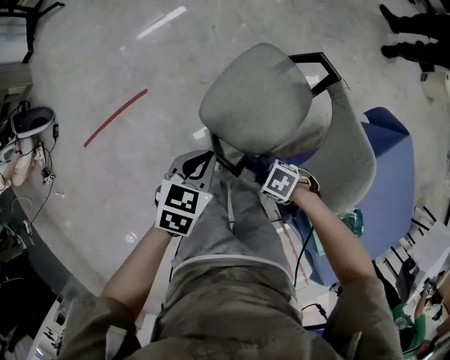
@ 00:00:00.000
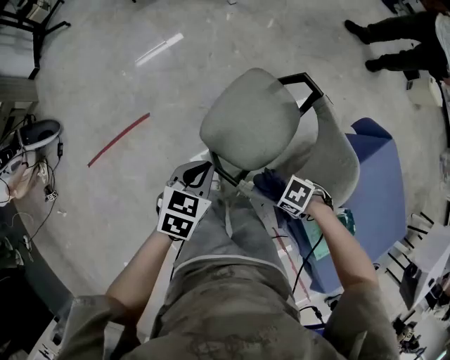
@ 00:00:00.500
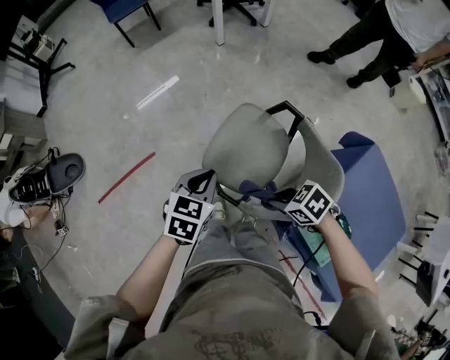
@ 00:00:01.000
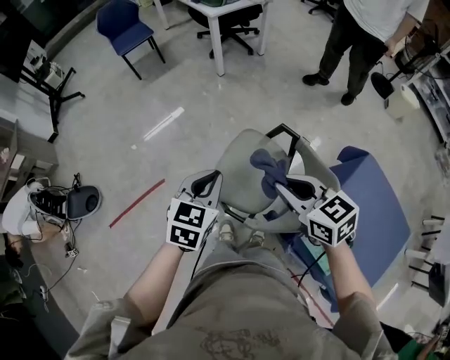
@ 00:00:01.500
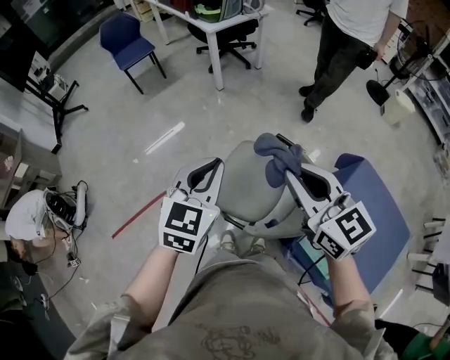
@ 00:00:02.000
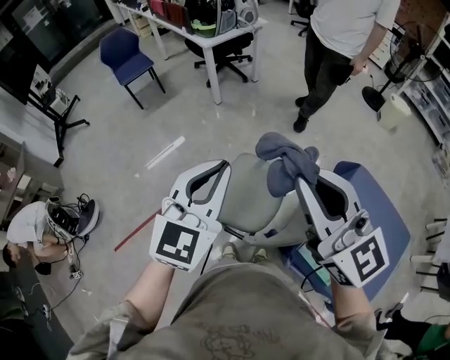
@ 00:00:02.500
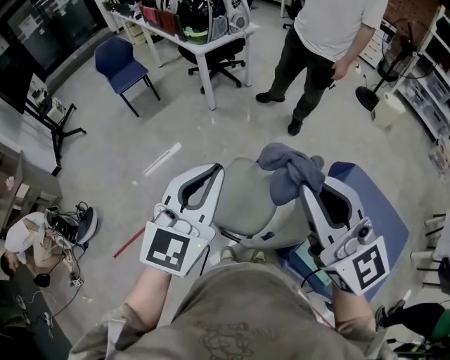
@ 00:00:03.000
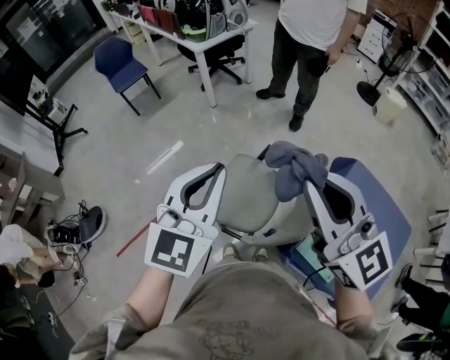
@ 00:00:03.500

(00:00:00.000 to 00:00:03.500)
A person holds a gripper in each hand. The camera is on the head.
00:00:00.000 - 00:00:02.000: The left gripper heads upward, covering some 30 cm, and tilts its fingers about 30 degrees upward; the right gripper travels upward by approximately 50 cm, and tips its fingers upward by about 50 degrees.
00:00:02.000 - 00:00:03.500: The left gripper is displaced upward by roughly 10 cm, while the right gripper goes approximately 10 cm upward and to the right.

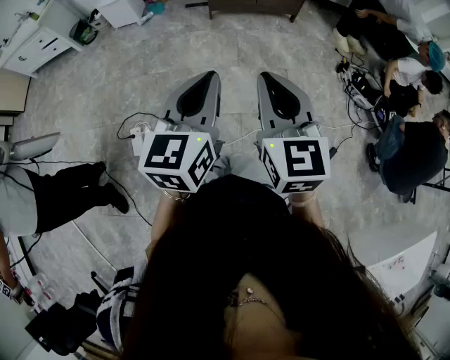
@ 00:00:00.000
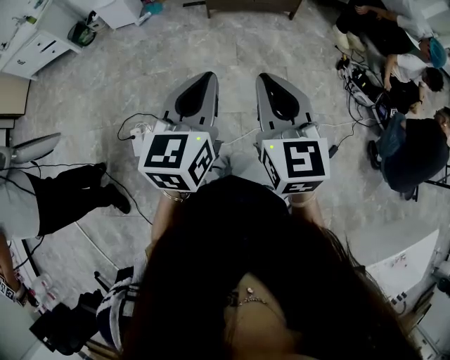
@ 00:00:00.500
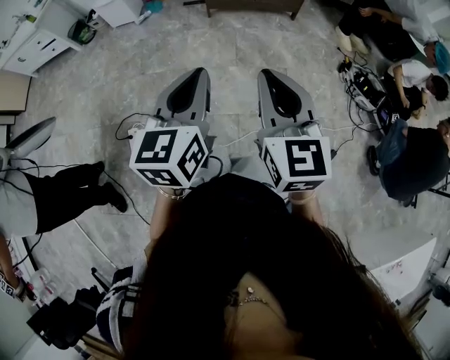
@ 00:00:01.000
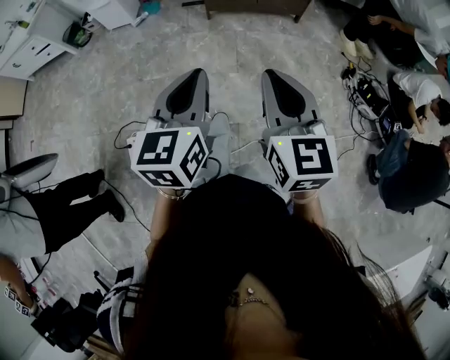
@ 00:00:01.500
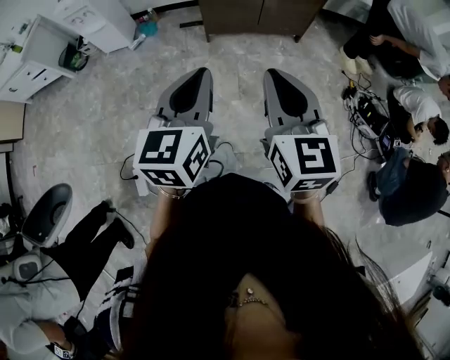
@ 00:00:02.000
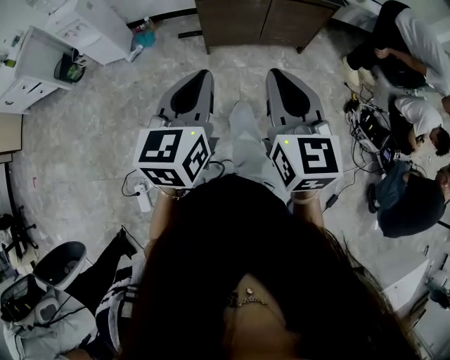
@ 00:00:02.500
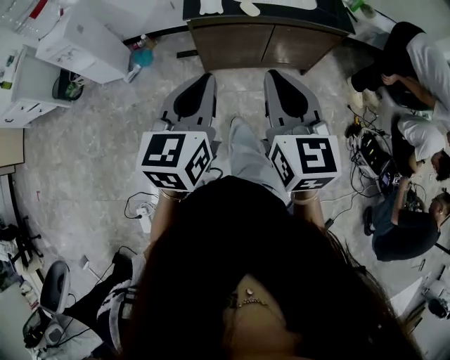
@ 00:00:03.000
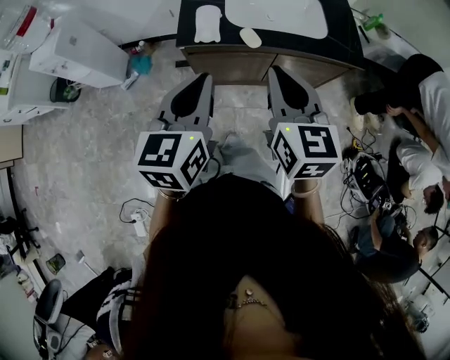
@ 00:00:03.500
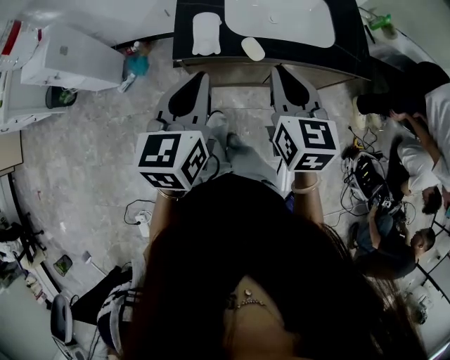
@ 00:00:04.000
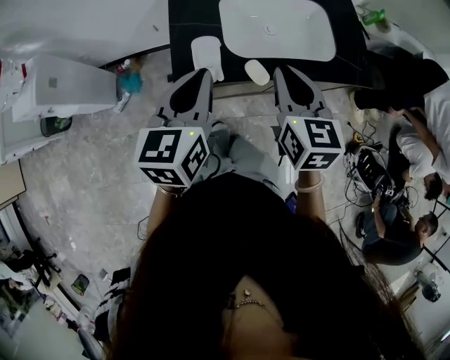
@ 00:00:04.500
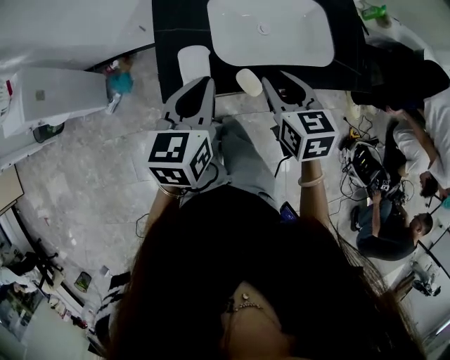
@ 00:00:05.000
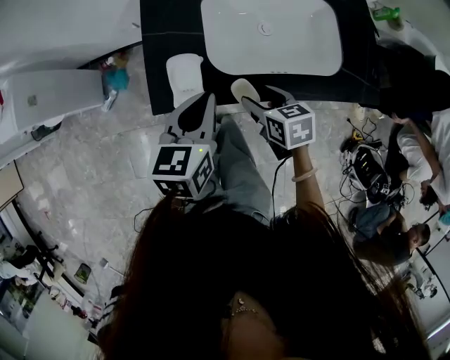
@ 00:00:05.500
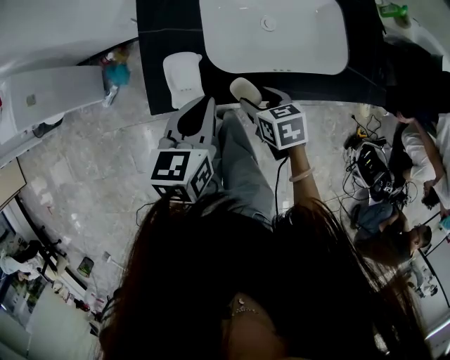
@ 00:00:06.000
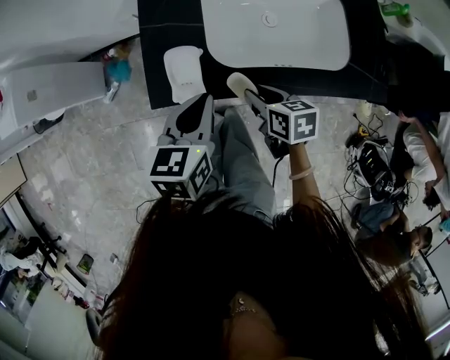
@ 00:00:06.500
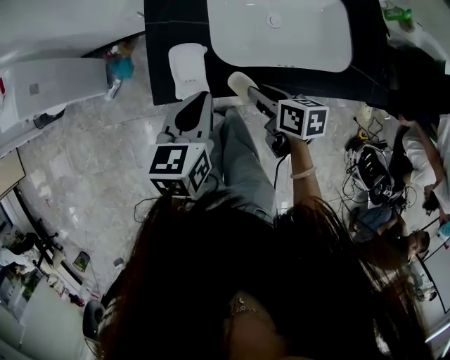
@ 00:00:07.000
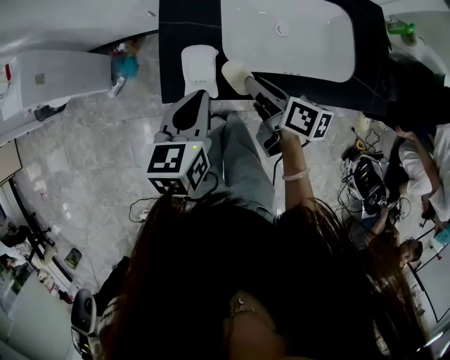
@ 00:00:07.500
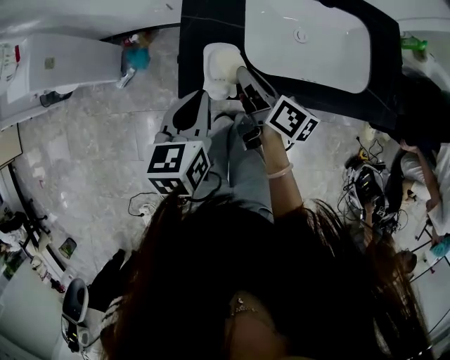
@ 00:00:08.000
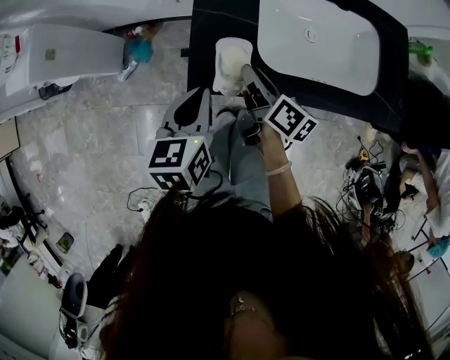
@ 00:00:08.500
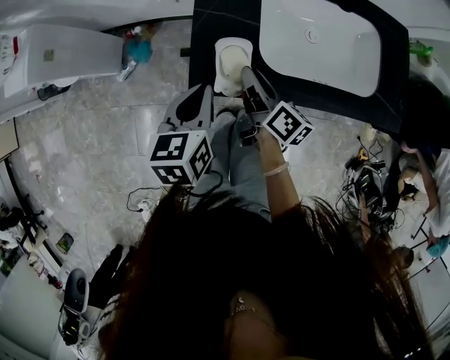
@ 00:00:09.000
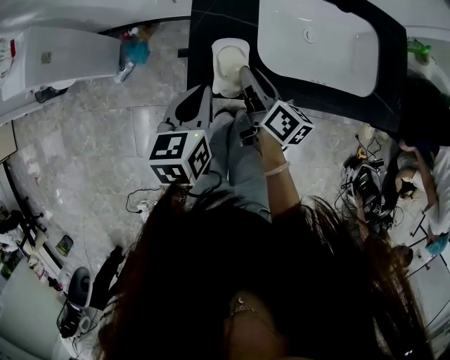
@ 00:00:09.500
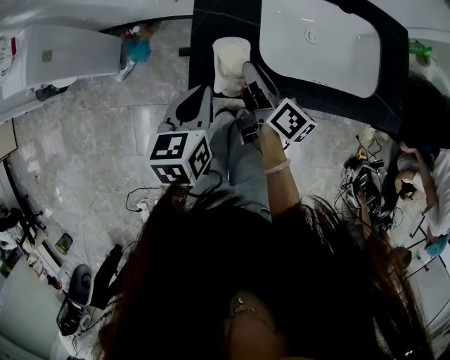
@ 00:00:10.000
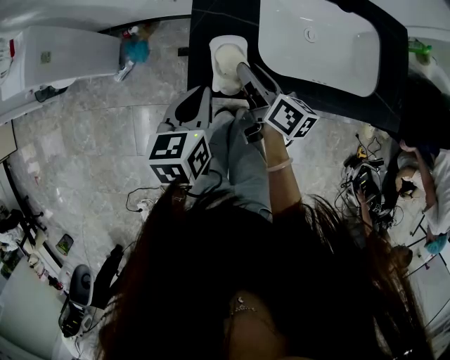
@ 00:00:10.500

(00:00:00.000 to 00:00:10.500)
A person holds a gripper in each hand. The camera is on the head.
00:00:00.000 - 00:00:02.000: The two grippers go roughly 30 cm forward.
00:00:02.000 - 00:00:04.000: The pair of grippers is taken forward, about 60 cm.
00:00:04.000 - 00:00:06.500: The left gripper moves forward and downward, about 20 cm, and rotates some 20 degrees; the right gripper heads downward and forward, covering approximately 30 cm, turns by some 40 degrees, and opens.
00:00:06.500 - 00:00:08.500: The left gripper travels to the left by about 10 cm. Meanwhile the right gripper shifts about 15 cm to the left and forward, and swivels roughly 40 degrees.
00:00:08.500 - 00:00:10.500: The grippers make only small movements.

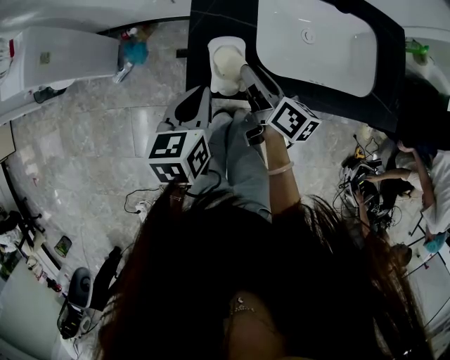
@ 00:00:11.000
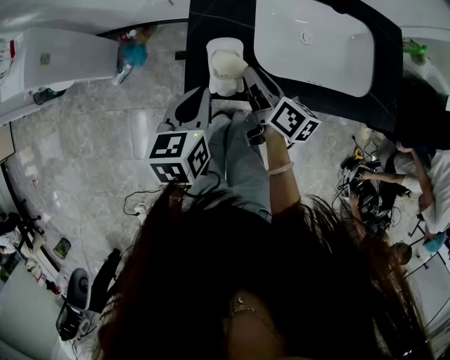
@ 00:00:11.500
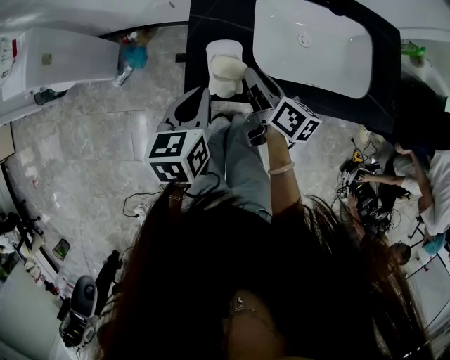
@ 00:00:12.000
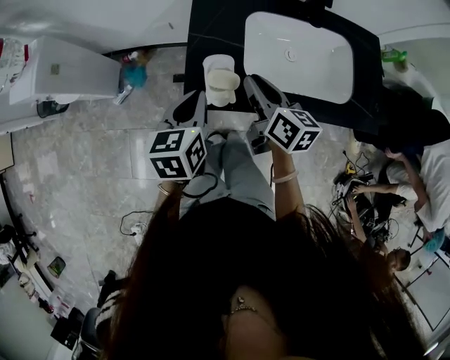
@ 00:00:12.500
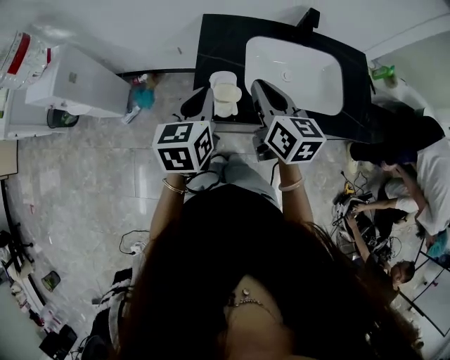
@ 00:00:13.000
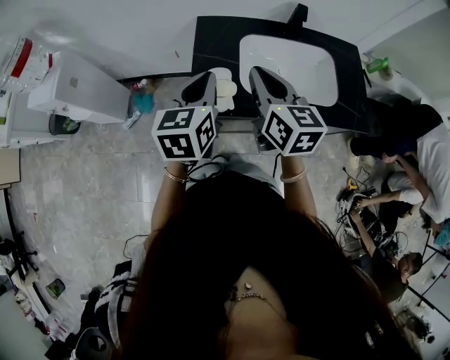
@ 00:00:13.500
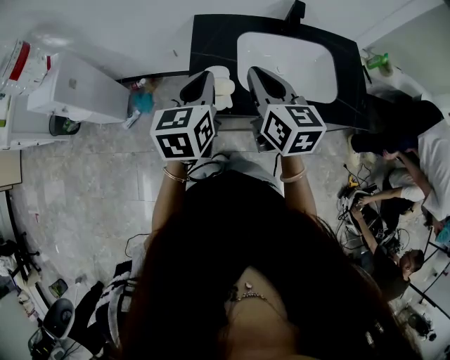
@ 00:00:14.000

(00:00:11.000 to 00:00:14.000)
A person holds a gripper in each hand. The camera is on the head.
00:00:11.000 - 00:00:12.500: The right gripper moves upward, about 10 cm, and closes its fingers.
00:00:12.500 - 00:00:14.000: The two grippers go approximately 10 cm upward. The right gripper rotates approximately 20 degrees.

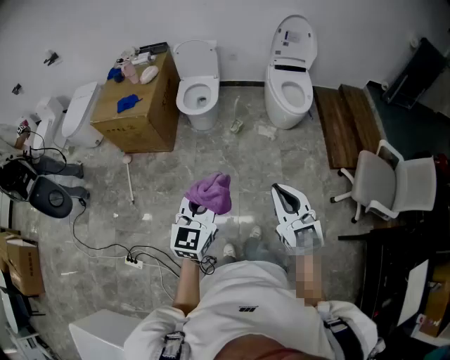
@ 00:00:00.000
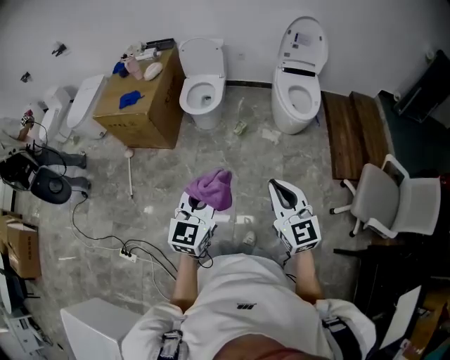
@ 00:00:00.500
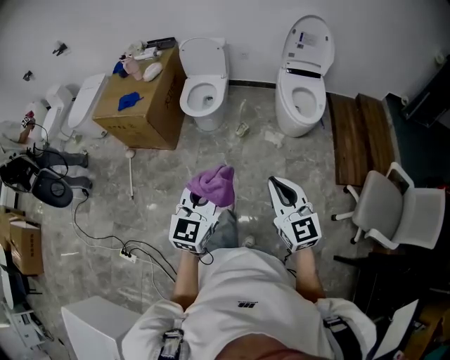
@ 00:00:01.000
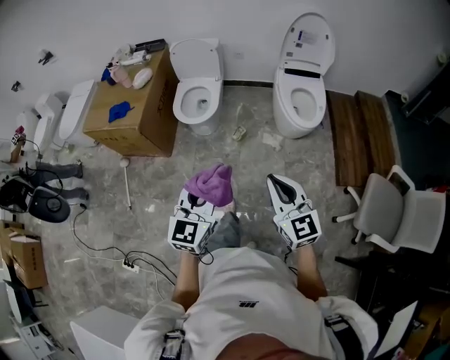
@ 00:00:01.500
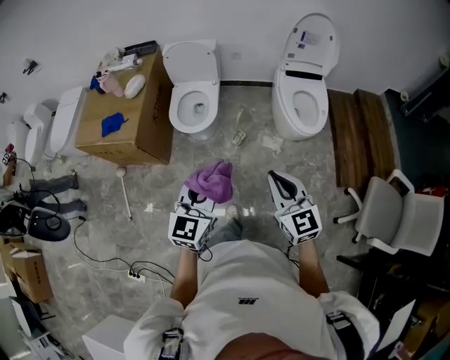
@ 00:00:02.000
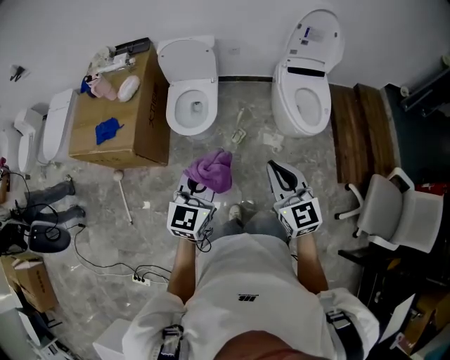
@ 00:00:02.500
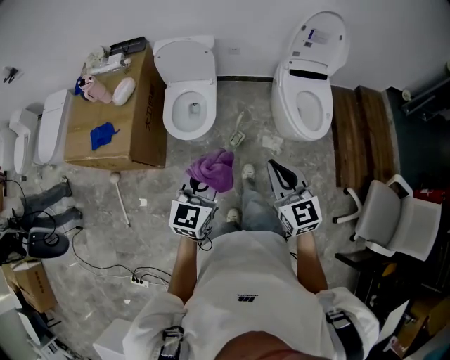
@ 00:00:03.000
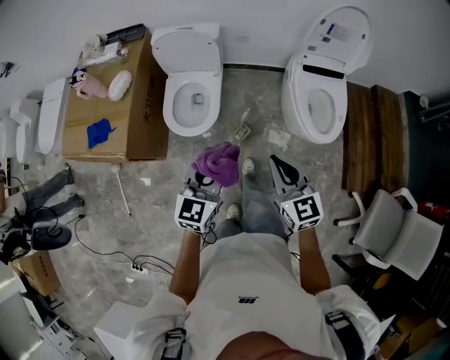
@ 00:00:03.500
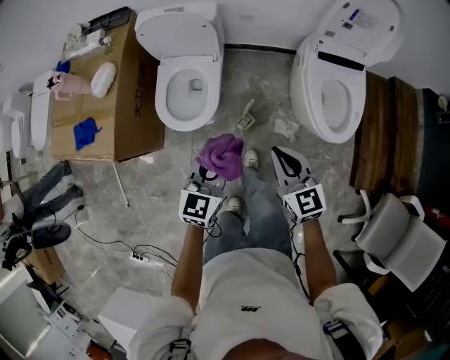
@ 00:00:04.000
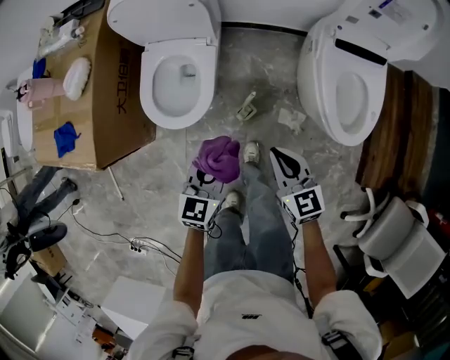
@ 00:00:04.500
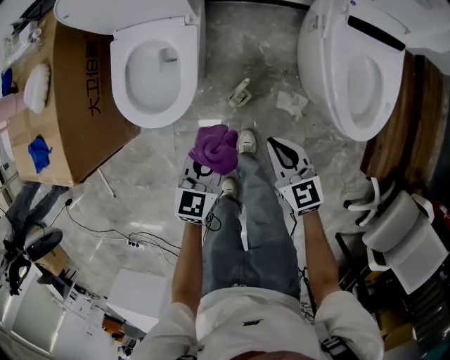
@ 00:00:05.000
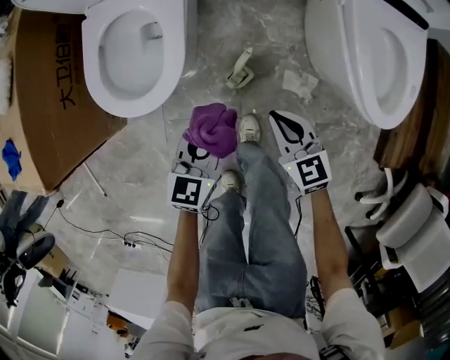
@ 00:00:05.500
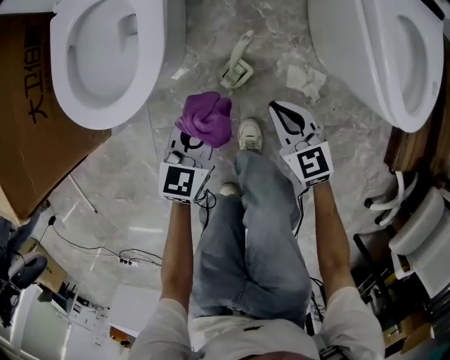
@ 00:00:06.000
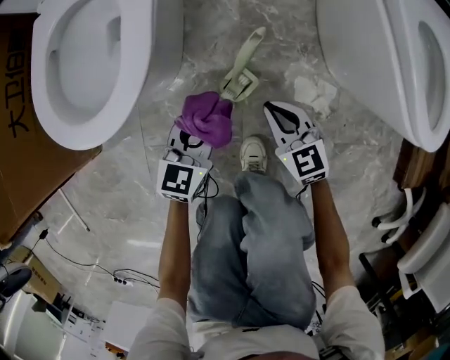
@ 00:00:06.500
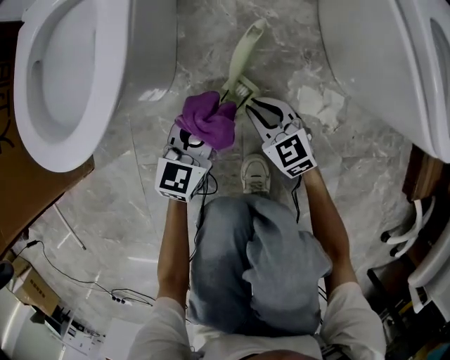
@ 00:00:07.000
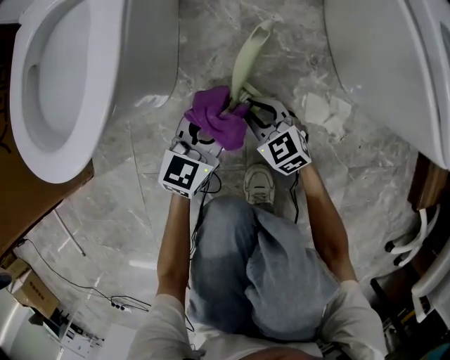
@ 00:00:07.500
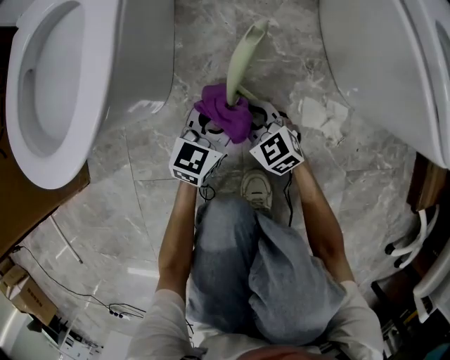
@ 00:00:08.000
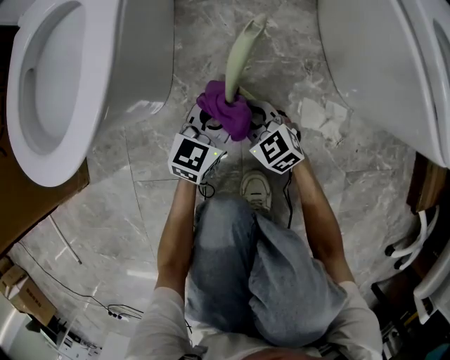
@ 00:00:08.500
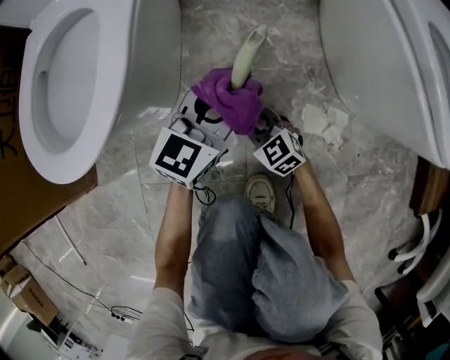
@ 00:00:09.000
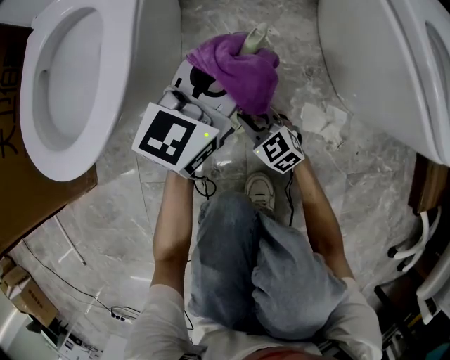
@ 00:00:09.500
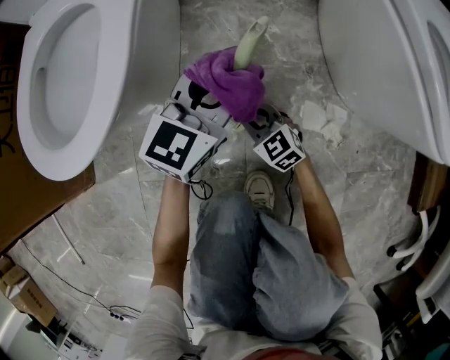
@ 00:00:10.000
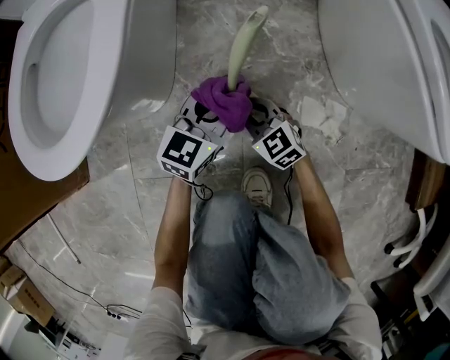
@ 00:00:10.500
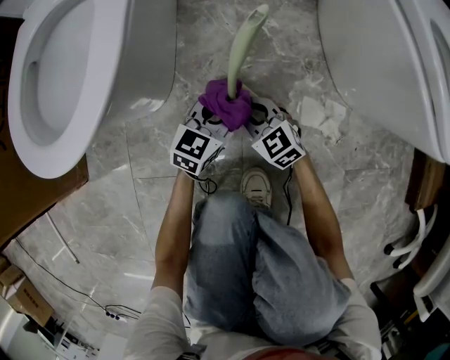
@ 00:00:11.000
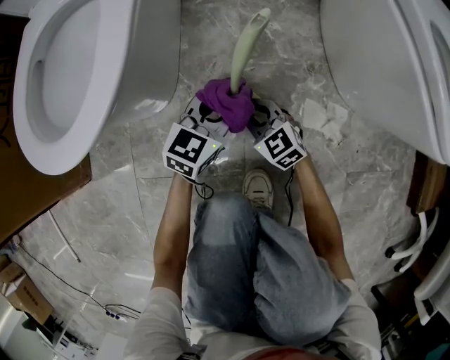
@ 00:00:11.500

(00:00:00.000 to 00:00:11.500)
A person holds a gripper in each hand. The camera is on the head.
00:00:00.000 - 00:00:02.000: Both grippers travel together forward, some 40 cm.
00:00:02.000 - 00:00:04.000: The grippers both shift forward and downward by some 40 cm.
00:00:04.000 - 00:00:06.000: Both grippers travel together downward, approximately 50 cm.
00:00:06.000 - 00:00:07.500: Both grippers move downward, some 25 cm. The left gripper opens.
00:00:07.500 - 00:00:09.500: The left gripper travels upward and forward by approximately 20 cm.
00:00:09.500 - 00:00:11.500: The left gripper heads downward, covering approximately 15 cm.
